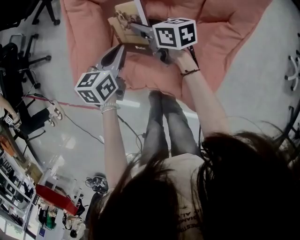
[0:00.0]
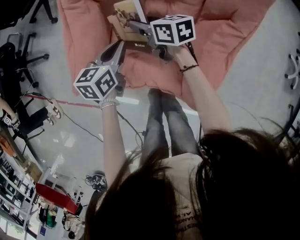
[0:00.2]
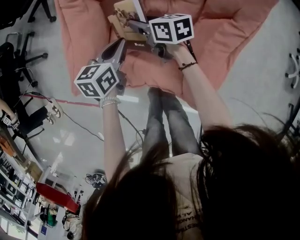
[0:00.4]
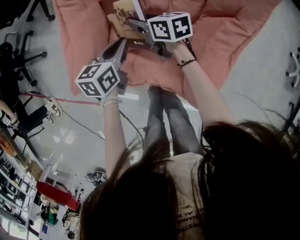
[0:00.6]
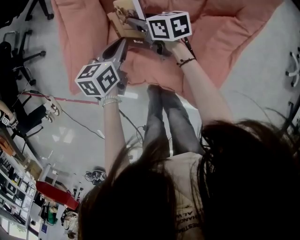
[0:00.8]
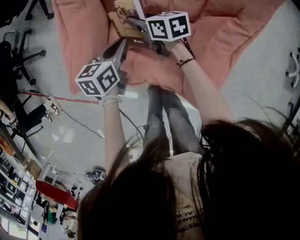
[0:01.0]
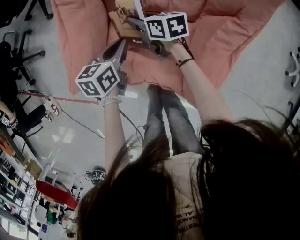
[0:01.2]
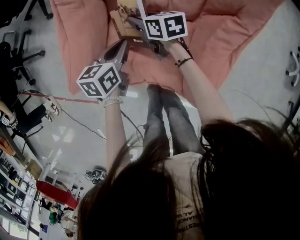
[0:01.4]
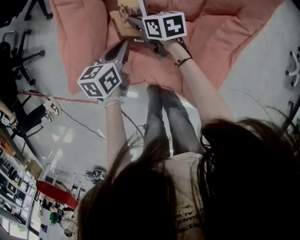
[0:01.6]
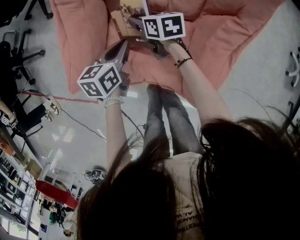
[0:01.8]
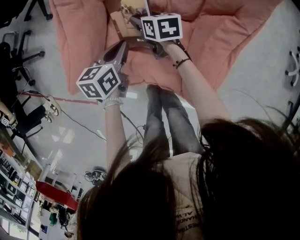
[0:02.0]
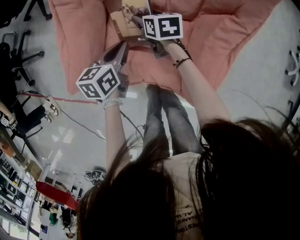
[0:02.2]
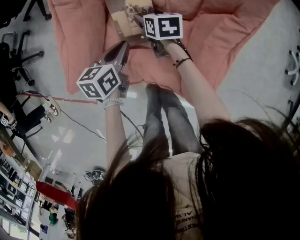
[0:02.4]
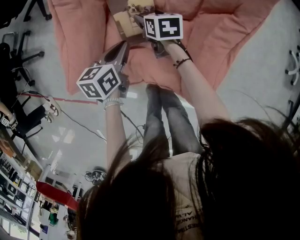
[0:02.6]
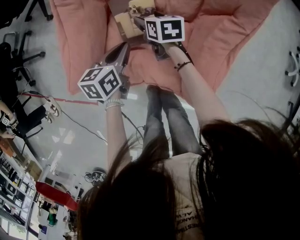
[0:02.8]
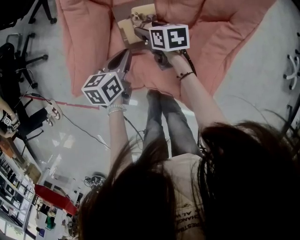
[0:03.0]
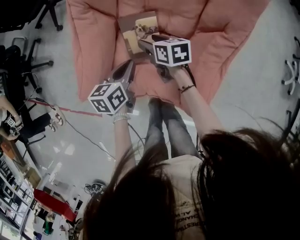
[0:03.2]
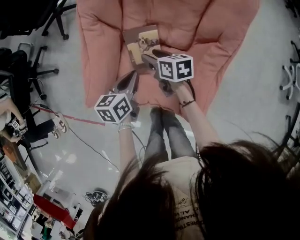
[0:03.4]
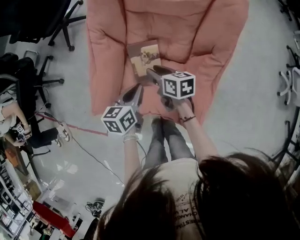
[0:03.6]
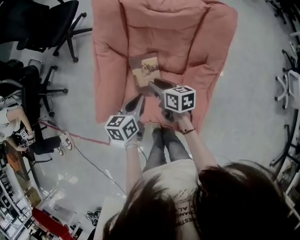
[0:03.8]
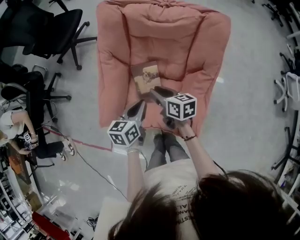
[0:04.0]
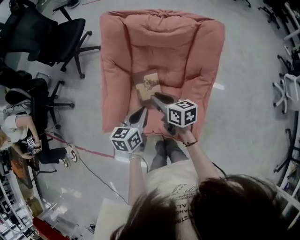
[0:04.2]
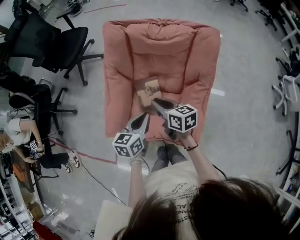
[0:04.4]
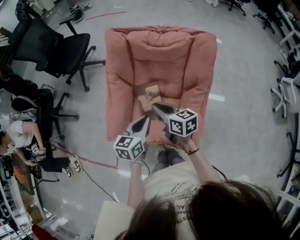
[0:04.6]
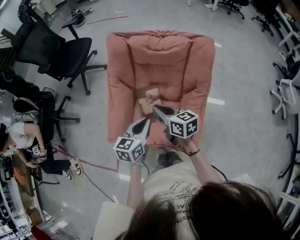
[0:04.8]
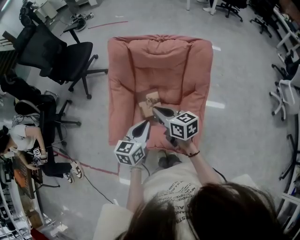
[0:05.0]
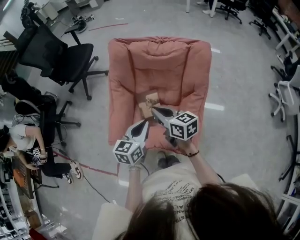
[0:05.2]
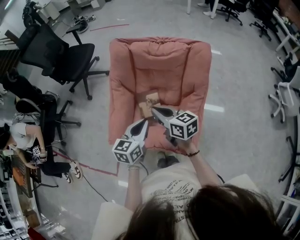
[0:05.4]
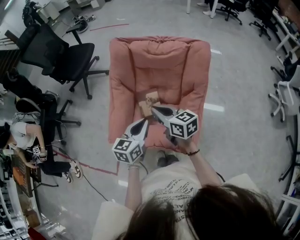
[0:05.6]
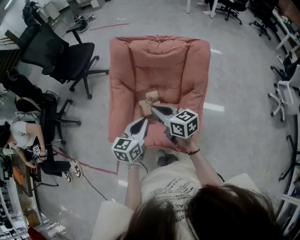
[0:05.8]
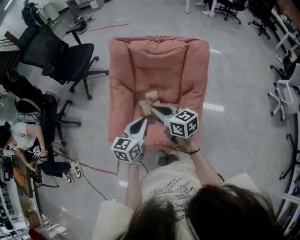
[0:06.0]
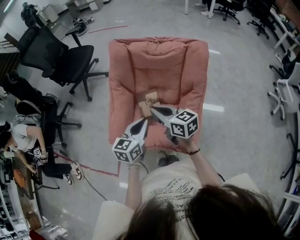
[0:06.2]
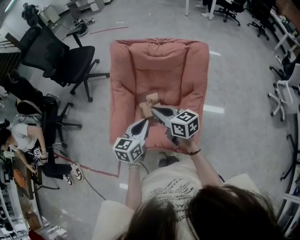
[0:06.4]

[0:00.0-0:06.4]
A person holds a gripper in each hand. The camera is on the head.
0:00.0 to 0:01.6: The two grippers go approximately 5 cm downward.
0:01.6 to 0:03.2: The right gripper shifts roughly 5 cm upward, while the left gripper moves some 5 cm.
0:03.2 to 0:04.8: The two grippers go some 25 cm upward. The right gripper changes its angle by some 20 degrees, and closes up; the left gripper turns by about 20 degrees.
0:04.8 to 0:06.4: The right gripper changes place by roughly 5 cm.

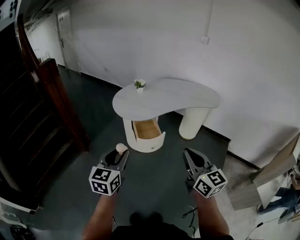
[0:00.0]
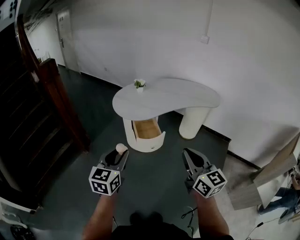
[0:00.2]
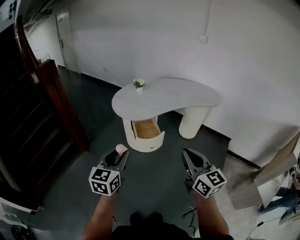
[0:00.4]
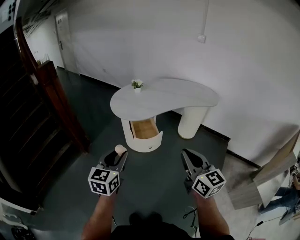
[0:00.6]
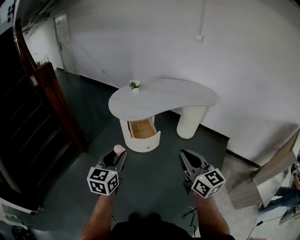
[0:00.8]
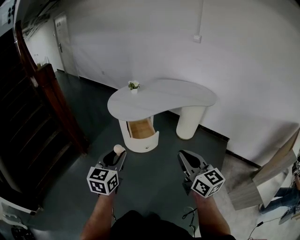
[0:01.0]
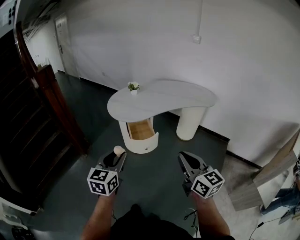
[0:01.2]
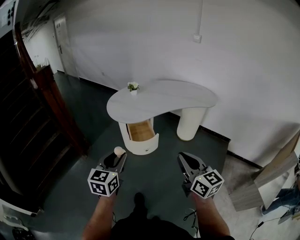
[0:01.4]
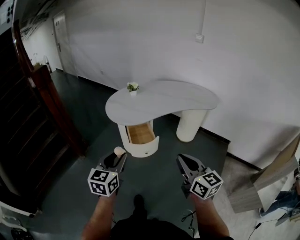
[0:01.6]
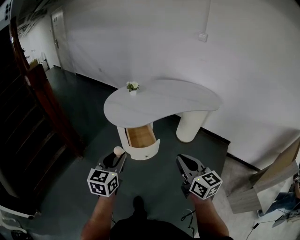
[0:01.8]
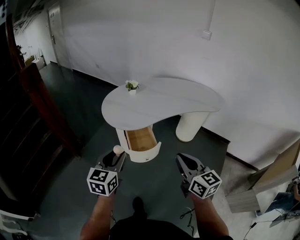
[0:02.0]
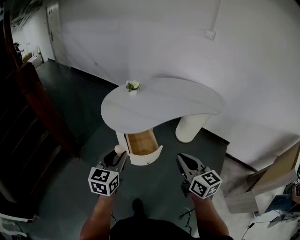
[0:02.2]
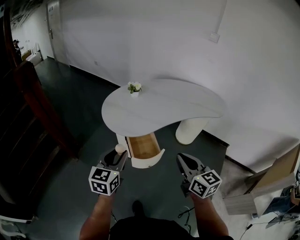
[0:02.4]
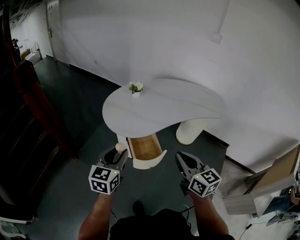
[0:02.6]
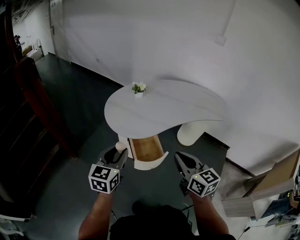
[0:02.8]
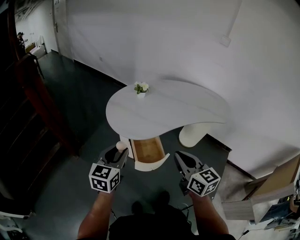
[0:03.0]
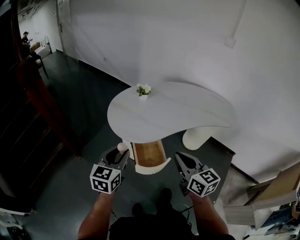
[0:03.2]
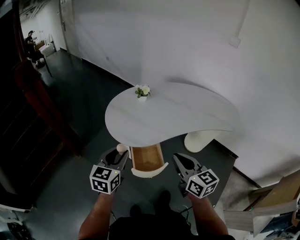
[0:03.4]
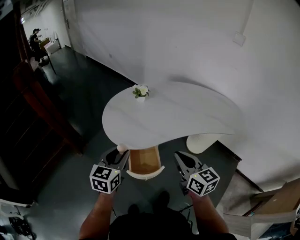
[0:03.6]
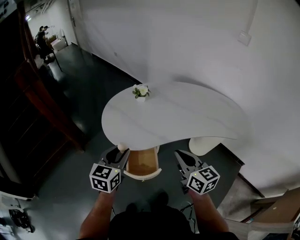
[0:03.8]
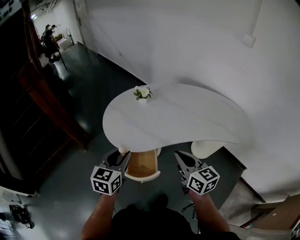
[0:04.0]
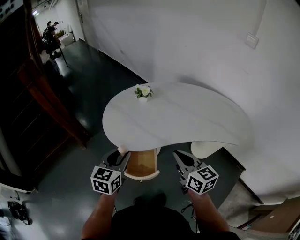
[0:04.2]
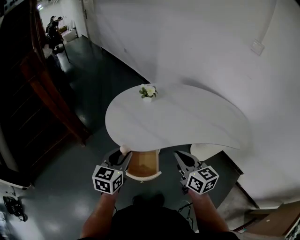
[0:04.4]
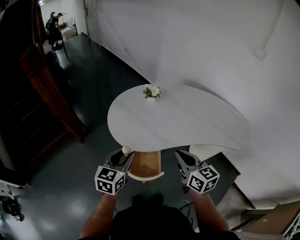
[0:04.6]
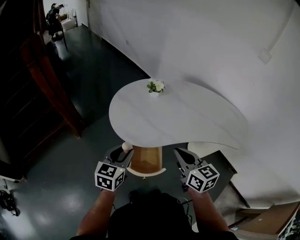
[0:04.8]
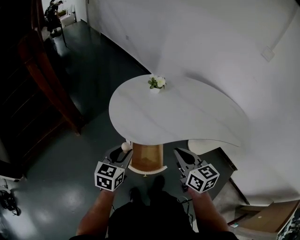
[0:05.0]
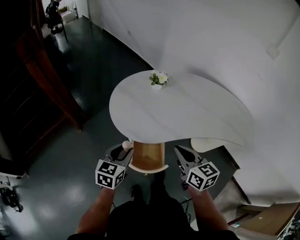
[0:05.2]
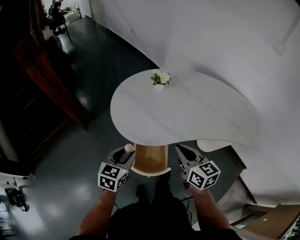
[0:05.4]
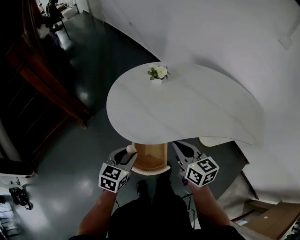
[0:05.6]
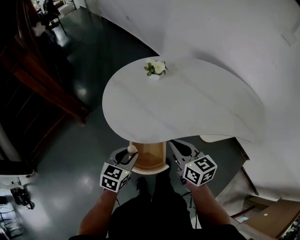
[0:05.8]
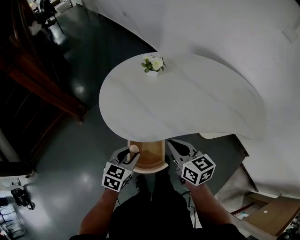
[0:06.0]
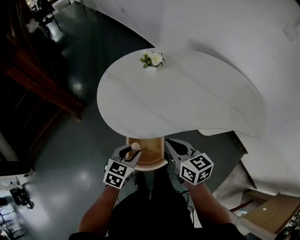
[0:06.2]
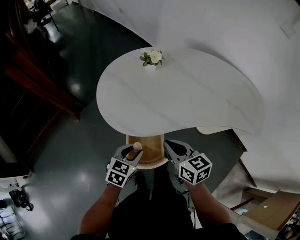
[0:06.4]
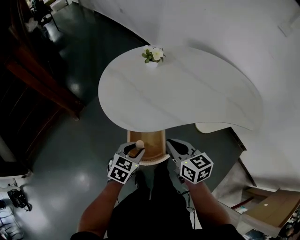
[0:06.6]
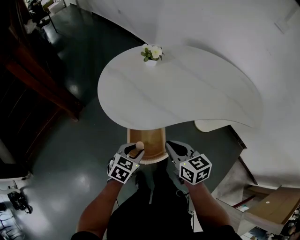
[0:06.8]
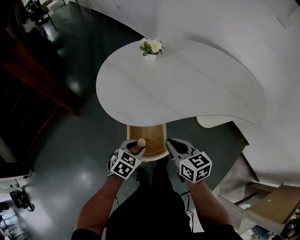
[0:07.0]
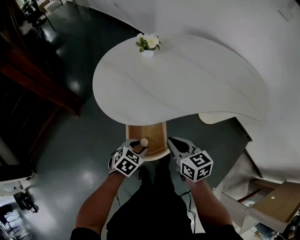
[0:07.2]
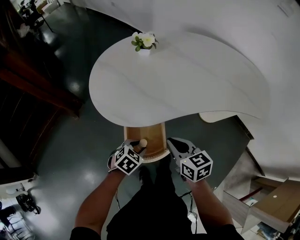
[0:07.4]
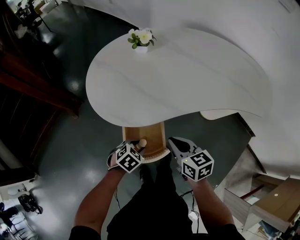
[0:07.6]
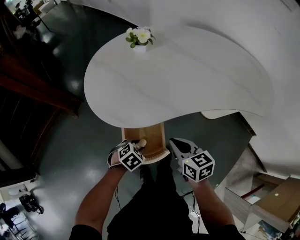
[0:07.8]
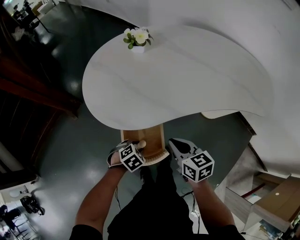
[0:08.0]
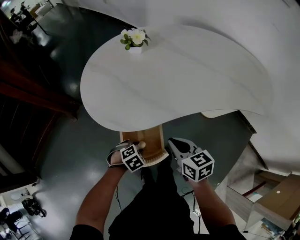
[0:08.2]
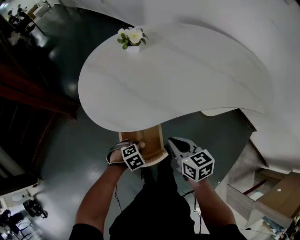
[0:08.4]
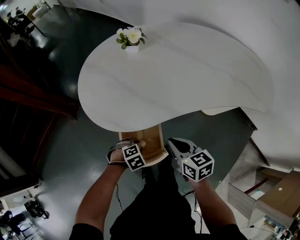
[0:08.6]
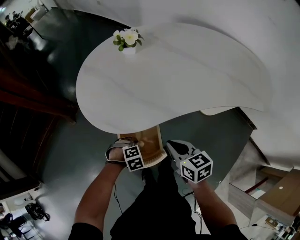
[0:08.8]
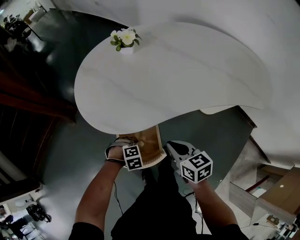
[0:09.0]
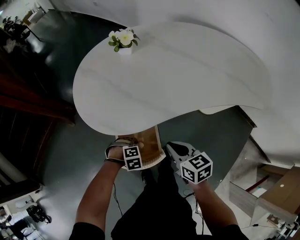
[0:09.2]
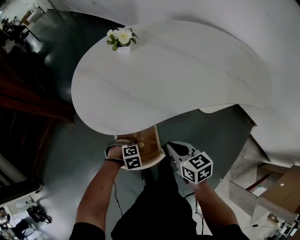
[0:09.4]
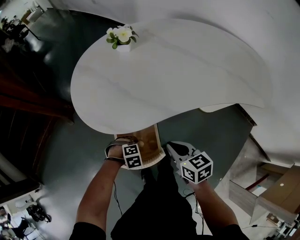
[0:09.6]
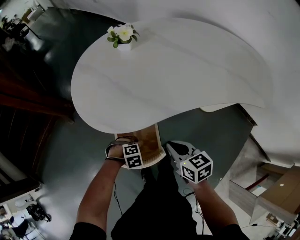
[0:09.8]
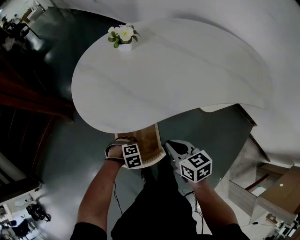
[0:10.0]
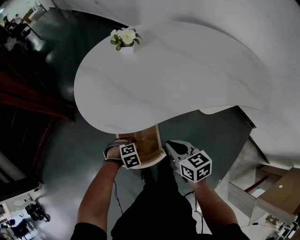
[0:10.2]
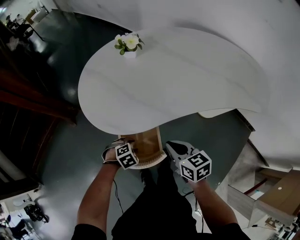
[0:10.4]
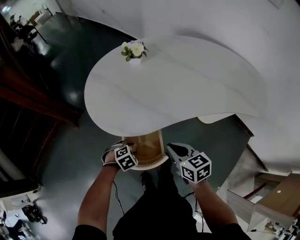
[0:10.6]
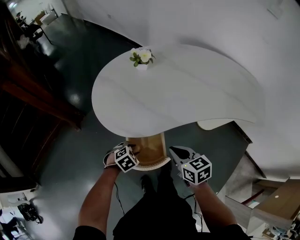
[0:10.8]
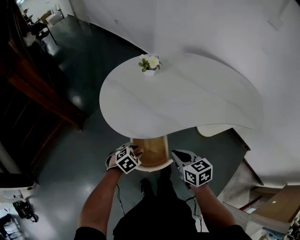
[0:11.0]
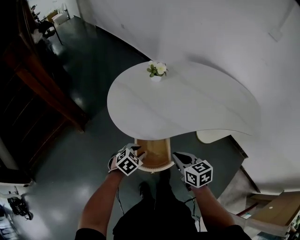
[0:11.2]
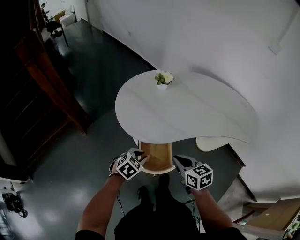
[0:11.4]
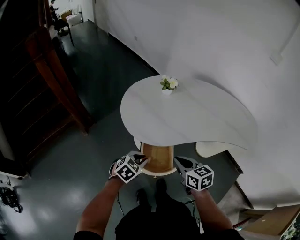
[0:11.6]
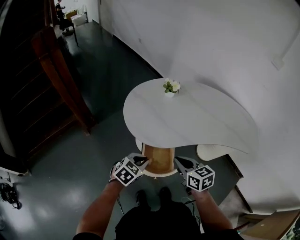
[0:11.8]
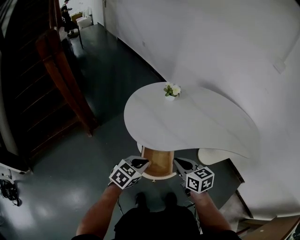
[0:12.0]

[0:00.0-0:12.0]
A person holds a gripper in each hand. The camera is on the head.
0:00.0 to 0:01.6: The right gripper moves about 5 cm, while the left gripper shifts some 5 cm to the right.
0:01.6 to 0:03.0: Both grippers move forward, approximately 25 cm.
0:03.0 to 0:04.4: The right gripper goes roughly 20 cm forward and to the right. The left gripper goes some 15 cm to the right and forward.
0:04.4 to 0:06.0: The left gripper travels downward by about 15 cm, and swivels approximately 20 degrees; the right gripper moves downward, forward and to the left, approximately 15 cm.
0:06.0 to 0:07.6: The right gripper is displaced downward and backward by roughly 10 cm. The left gripper travels downward by approximately 15 cm, and swivels approximately 40 degrees.
0:07.6 to 0:09.0: The left gripper shifts approximately 10 cm downward, and swivels about 40 degrees.
0:09.0 to 0:10.4: The grippers make only small movements.
0:10.4 to 0:12.0: The right gripper heads upward, covering roughly 15 cm. The left gripper is displaced upward by about 30 cm, tilts its fingers some 40 degrees upward, and closes.

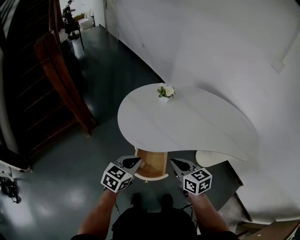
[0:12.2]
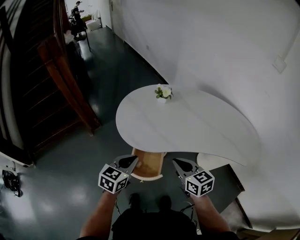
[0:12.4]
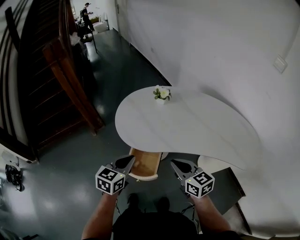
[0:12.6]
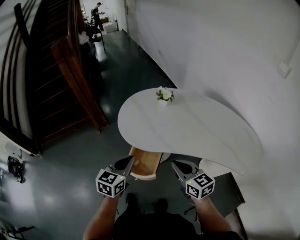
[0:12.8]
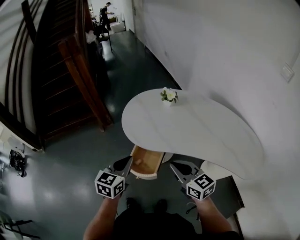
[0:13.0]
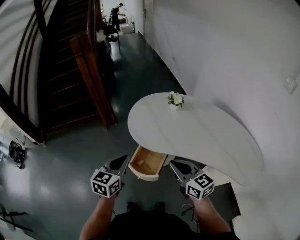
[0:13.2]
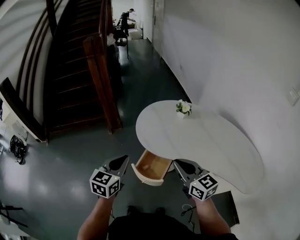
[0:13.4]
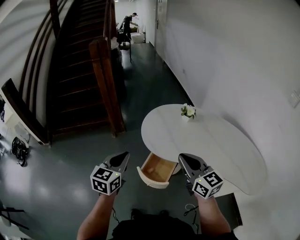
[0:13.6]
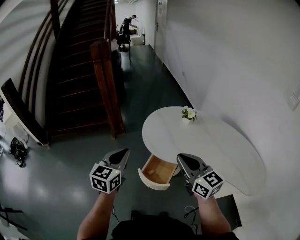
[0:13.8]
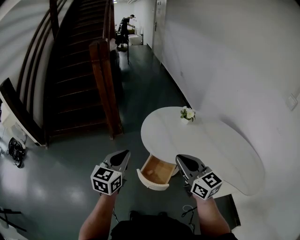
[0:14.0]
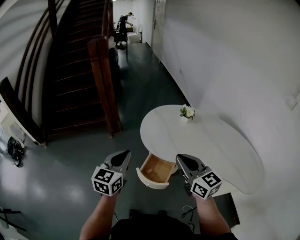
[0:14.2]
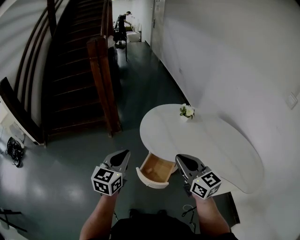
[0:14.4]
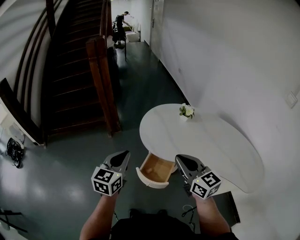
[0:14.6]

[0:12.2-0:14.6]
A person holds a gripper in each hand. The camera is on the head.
0:12.2 to 0:13.4: Both grippers travel together upward, about 10 cm. The right gripper changes its angle by roughly 30 degrees, while the left gripper rotates some 40 degrees.
0:13.4 to 0:14.6: The left gripper ends up about 5 cm from where it was. Meanwhile the right gripper changes place by some 5 cm.

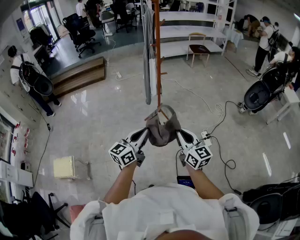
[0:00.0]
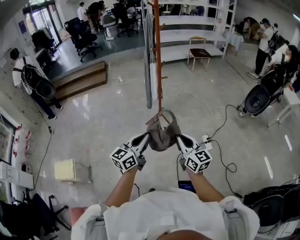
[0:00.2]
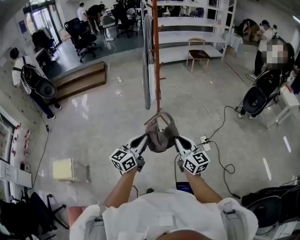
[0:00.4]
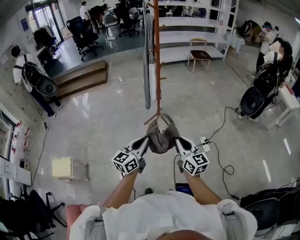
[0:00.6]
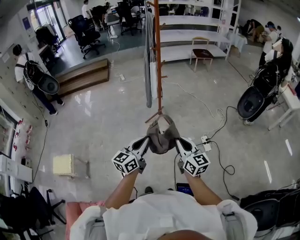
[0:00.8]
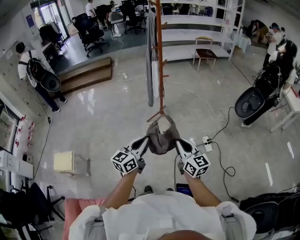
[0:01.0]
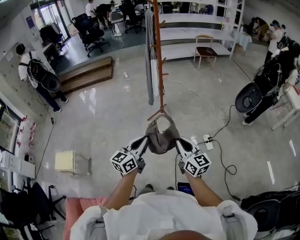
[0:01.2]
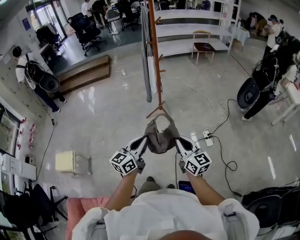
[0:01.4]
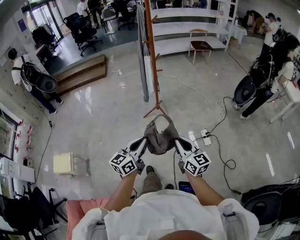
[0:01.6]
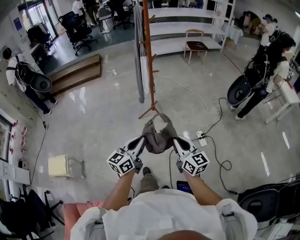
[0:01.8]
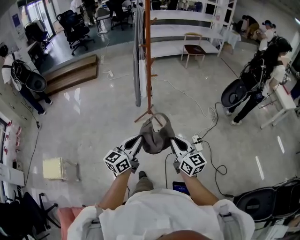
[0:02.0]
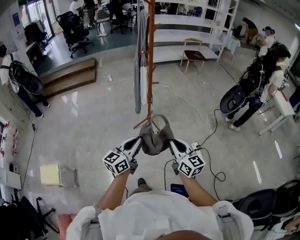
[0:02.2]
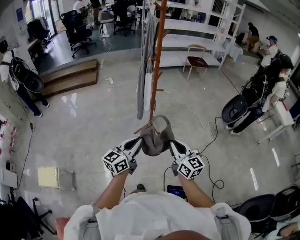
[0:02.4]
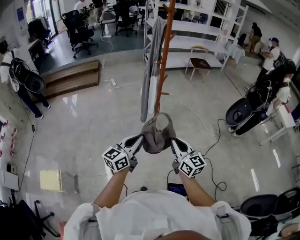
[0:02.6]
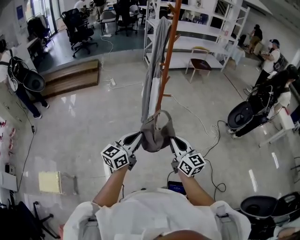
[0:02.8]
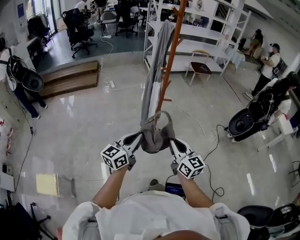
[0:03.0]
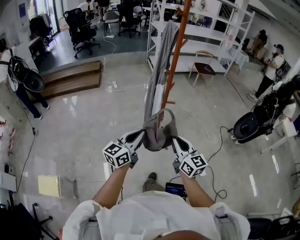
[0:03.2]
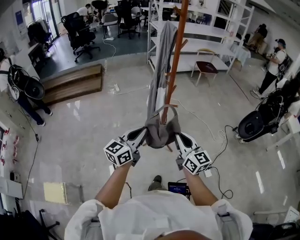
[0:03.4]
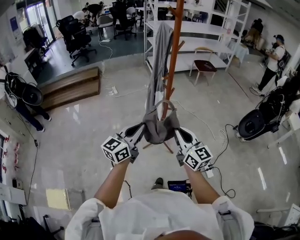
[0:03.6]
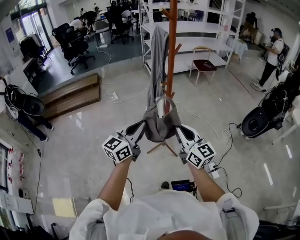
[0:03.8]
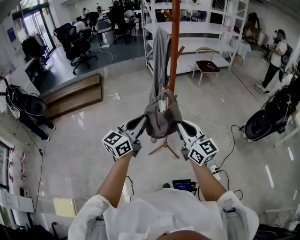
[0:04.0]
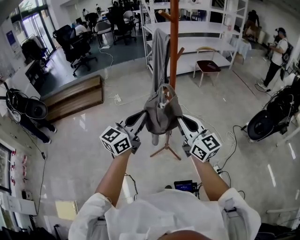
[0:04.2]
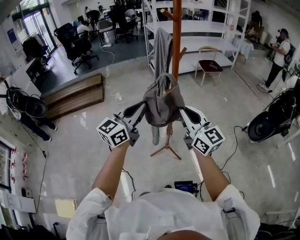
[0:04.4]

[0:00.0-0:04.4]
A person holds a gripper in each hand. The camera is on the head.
0:00.0 to 0:01.4: The grippers both shift to the right by roughly 5 cm.
0:01.4 to 0:03.0: The two grippers go about 35 cm forward and to the left.
0:03.0 to 0:04.4: The grippers both shift forward and upward by approximately 30 cm.
